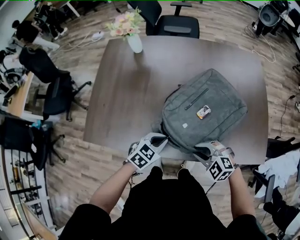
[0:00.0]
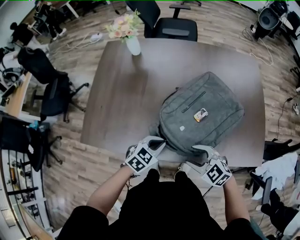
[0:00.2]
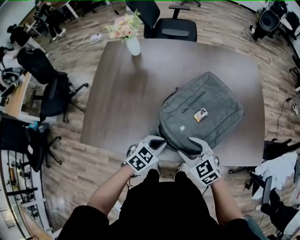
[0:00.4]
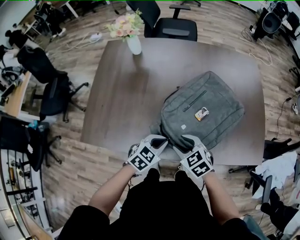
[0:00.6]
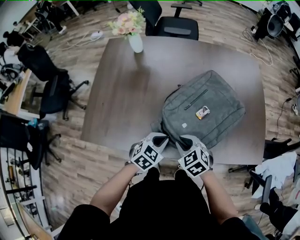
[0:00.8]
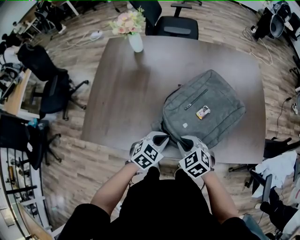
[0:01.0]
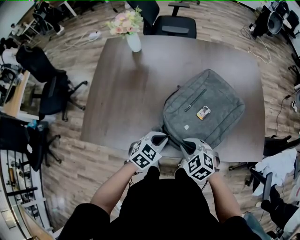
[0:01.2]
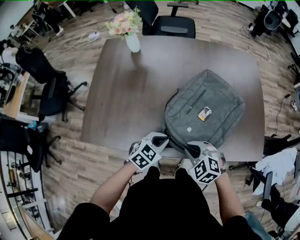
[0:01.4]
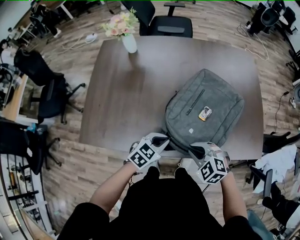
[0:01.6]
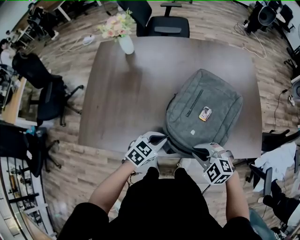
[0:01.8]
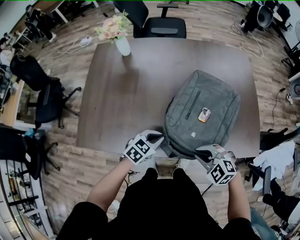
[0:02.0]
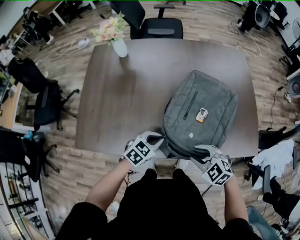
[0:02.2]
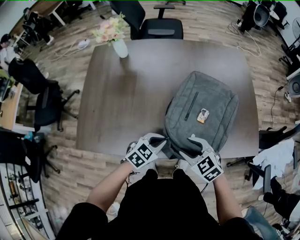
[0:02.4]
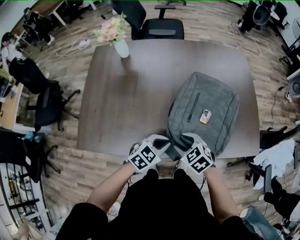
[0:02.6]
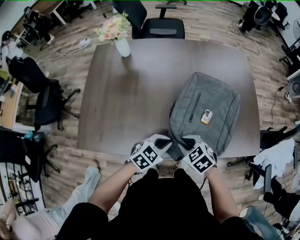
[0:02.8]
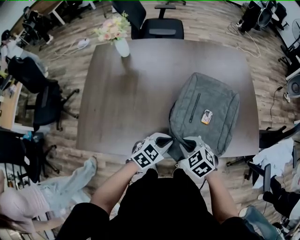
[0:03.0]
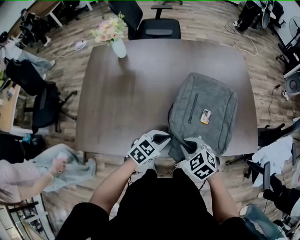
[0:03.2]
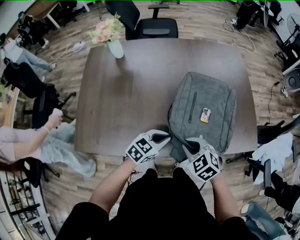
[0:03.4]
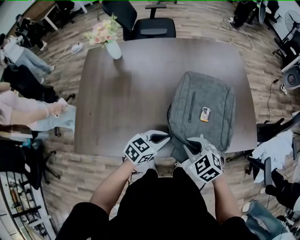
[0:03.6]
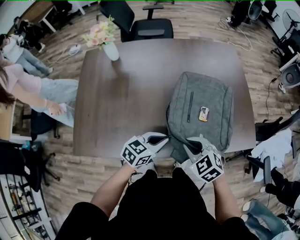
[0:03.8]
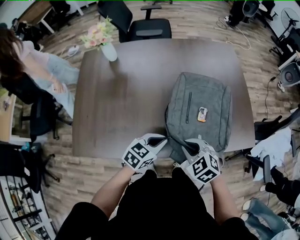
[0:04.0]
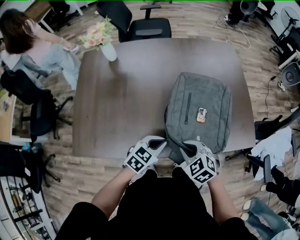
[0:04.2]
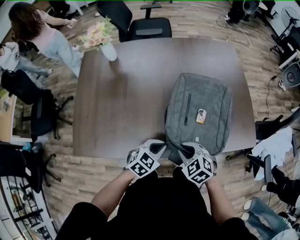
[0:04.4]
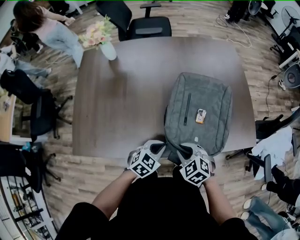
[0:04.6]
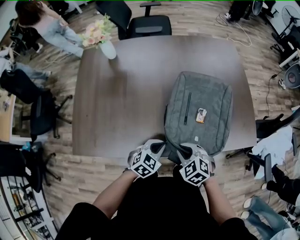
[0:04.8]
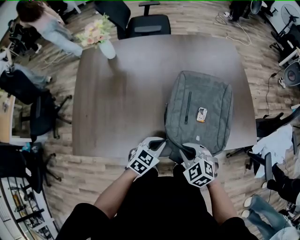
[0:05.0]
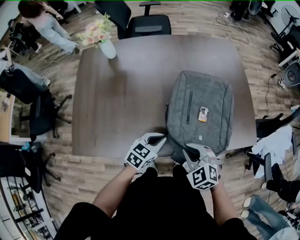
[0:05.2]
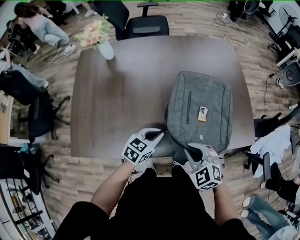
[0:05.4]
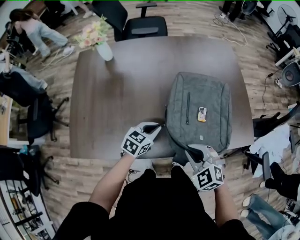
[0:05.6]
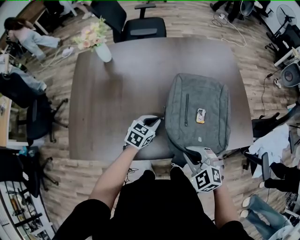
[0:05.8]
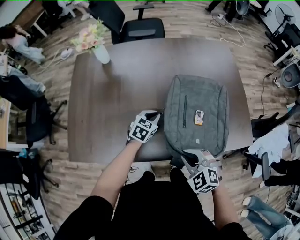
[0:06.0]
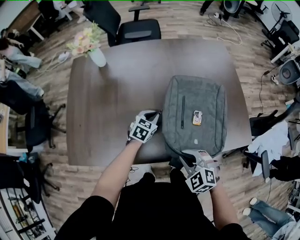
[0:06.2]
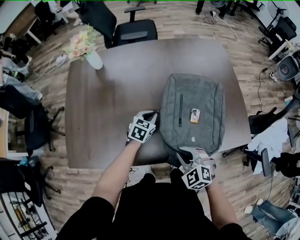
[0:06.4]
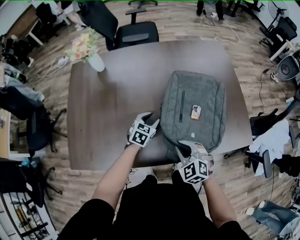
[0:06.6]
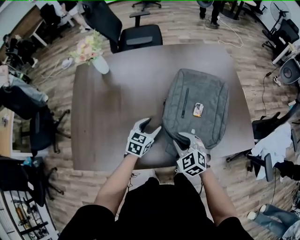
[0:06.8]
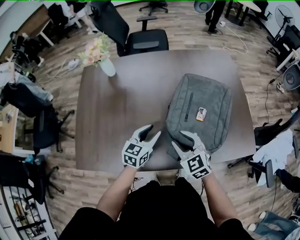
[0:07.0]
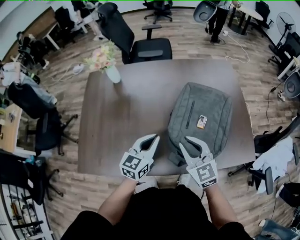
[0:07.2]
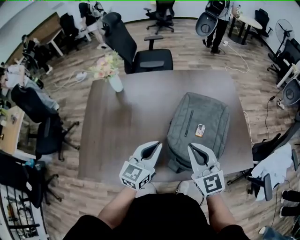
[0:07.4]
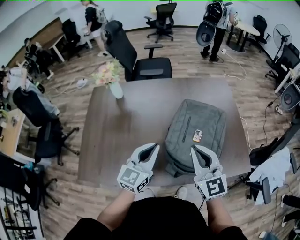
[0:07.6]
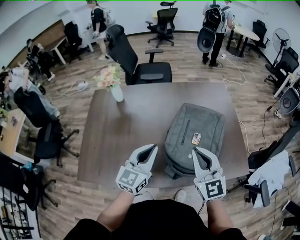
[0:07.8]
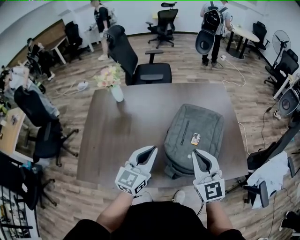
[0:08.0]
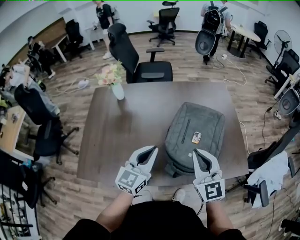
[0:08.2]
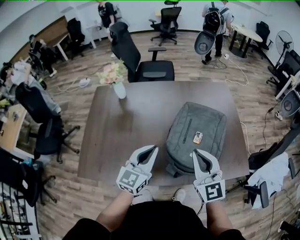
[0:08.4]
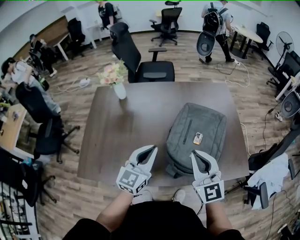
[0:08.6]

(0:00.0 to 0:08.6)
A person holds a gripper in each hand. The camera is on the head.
0:00.0 - 0:01.4: The right gripper opens, then closes once more.
0:01.4 - 0:02.8: The right gripper moves roughly 5 cm to the right and comes back, changes its angle by some 20 degrees, and opens and closes again.
0:04.4 - 0:05.8: The right gripper shifts by some 5 cm. Meanwhile the left gripper travels forward by about 15 cm.
0:05.8 - 0:07.2: The left gripper heads upward, covering roughly 15 cm, rotates some 30 degrees, and opens, then closes again. Meanwhile the right gripper goes about 15 cm forward and upward, and swivels approximately 30 degrees.
0:07.2 - 0:08.6: Both grippers move upward, approximately 10 cm. The right gripper rotates roughly 20 degrees, and closes.

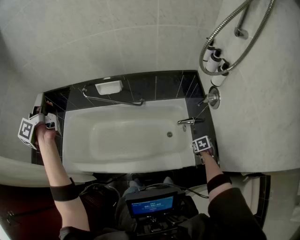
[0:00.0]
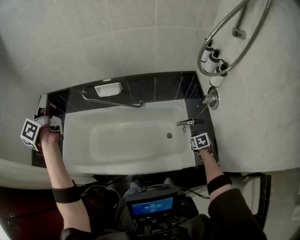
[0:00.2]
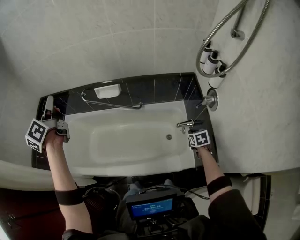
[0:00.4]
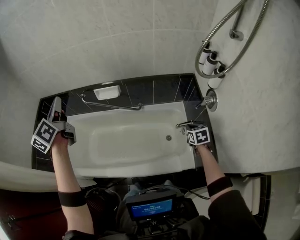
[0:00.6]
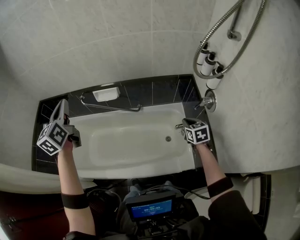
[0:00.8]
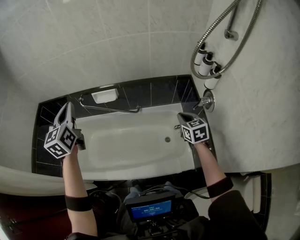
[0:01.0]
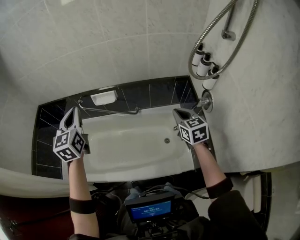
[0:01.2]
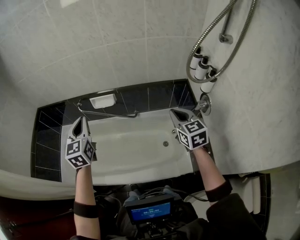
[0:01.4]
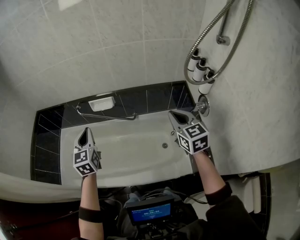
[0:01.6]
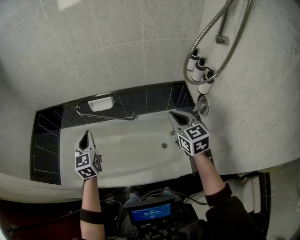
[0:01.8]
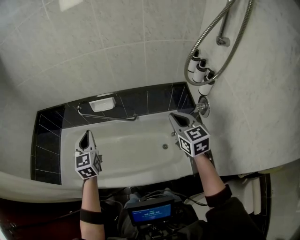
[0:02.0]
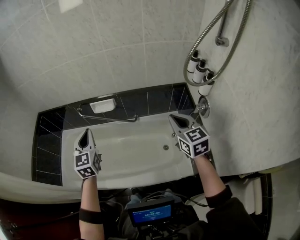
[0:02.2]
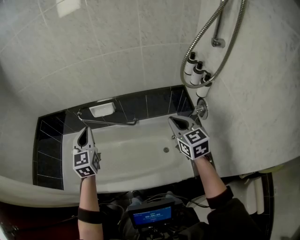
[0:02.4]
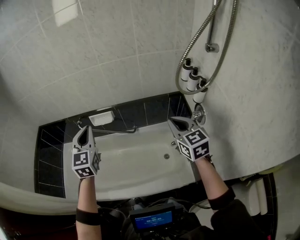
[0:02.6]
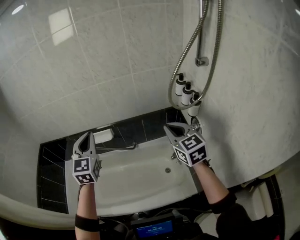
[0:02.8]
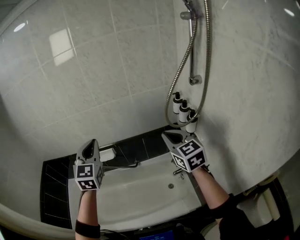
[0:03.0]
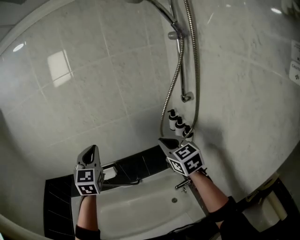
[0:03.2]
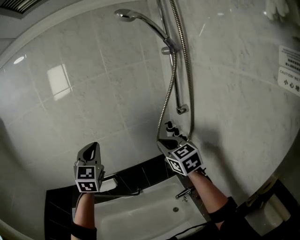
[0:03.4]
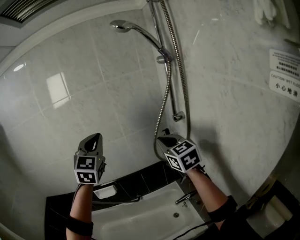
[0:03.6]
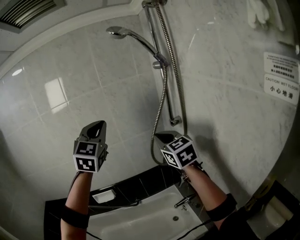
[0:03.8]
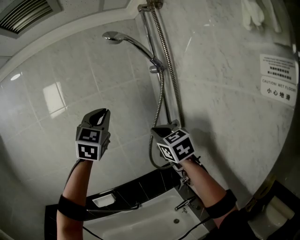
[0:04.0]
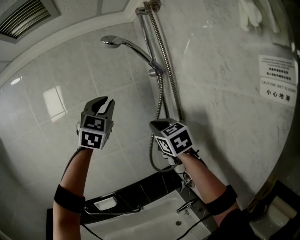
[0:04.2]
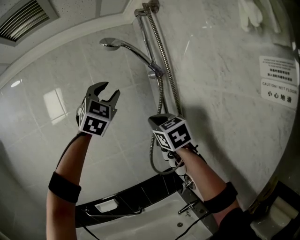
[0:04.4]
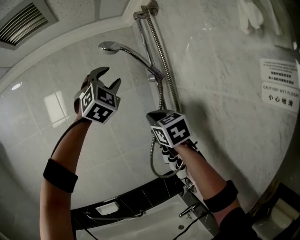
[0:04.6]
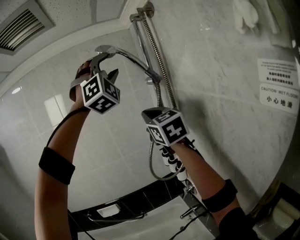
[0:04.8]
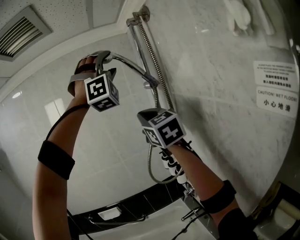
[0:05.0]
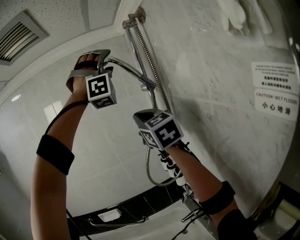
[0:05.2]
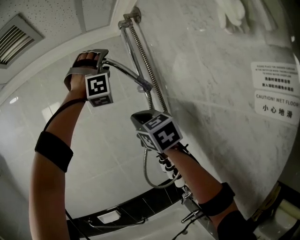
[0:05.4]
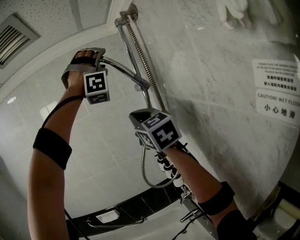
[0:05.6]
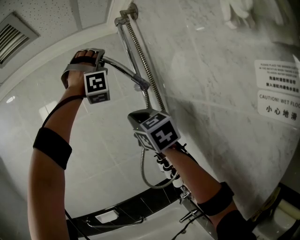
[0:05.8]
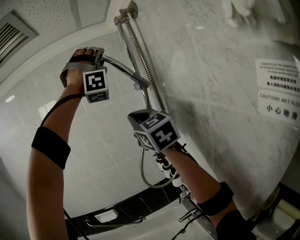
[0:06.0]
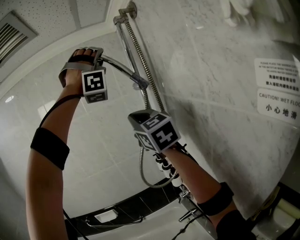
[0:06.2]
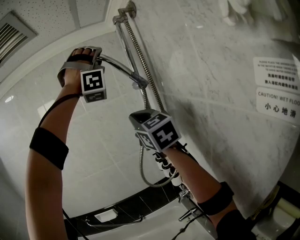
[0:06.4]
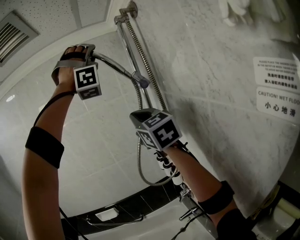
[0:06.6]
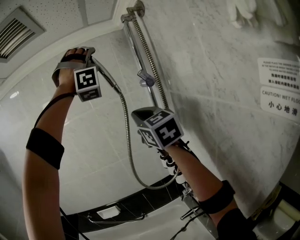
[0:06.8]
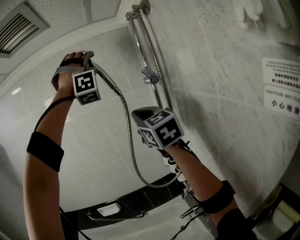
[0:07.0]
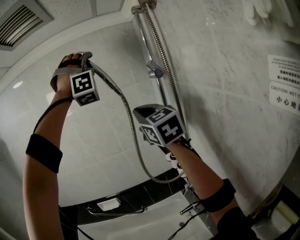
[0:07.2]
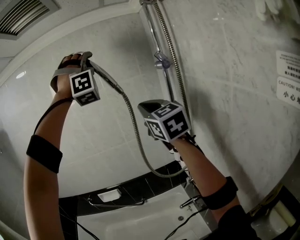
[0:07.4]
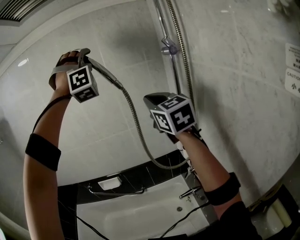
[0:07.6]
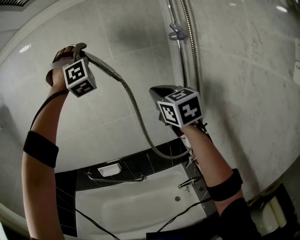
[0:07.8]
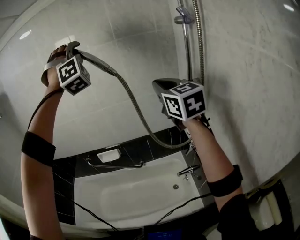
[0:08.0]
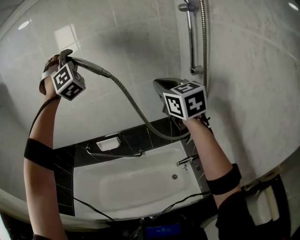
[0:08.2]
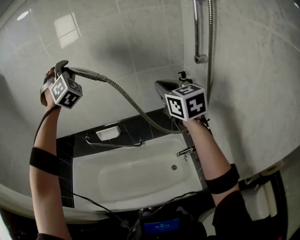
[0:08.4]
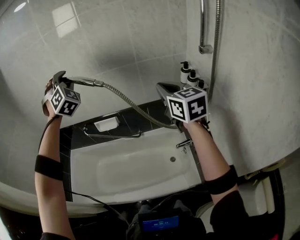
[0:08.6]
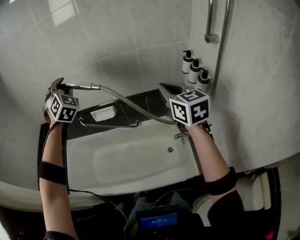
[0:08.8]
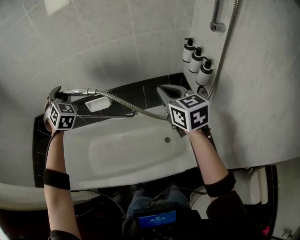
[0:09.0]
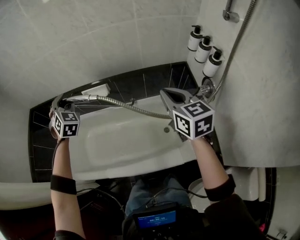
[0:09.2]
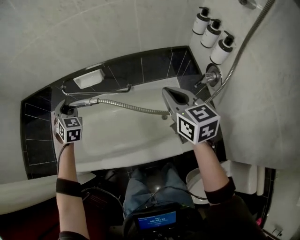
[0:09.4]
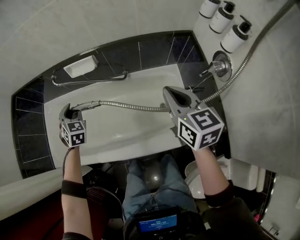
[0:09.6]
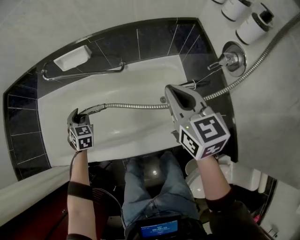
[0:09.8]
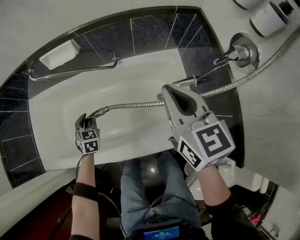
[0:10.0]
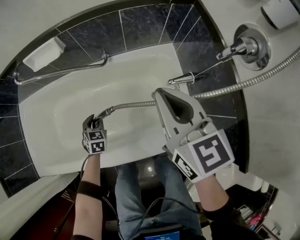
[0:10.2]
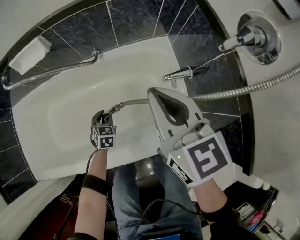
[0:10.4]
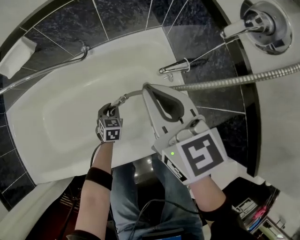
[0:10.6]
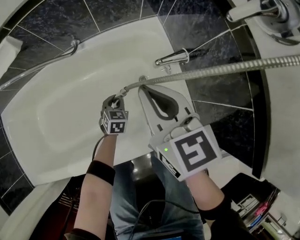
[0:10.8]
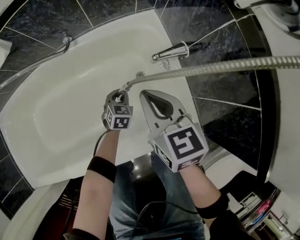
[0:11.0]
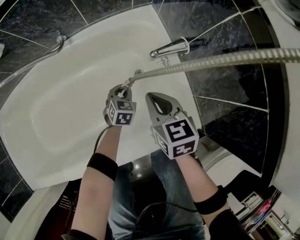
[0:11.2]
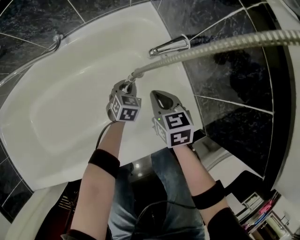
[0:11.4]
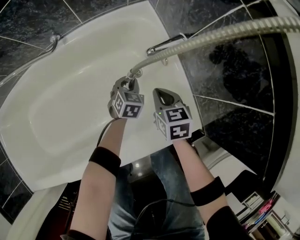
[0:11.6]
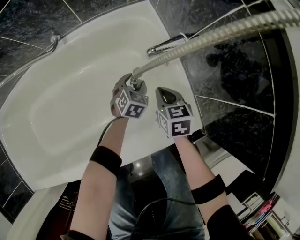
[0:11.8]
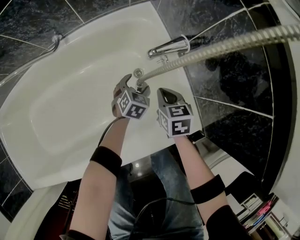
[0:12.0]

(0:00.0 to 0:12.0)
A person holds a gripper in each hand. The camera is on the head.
0:00.0 - 0:01.6: The right gripper shifts approximately 35 cm upward, and tips its fingers upward by some 50 degrees, while the left gripper moves some 25 cm, and twists approximately 60 degrees clockwise, seen from behind.
0:01.6 - 0:03.0: The left gripper travels upward and to the right by roughly 20 cm, and rotates roughly 30 degrees; the right gripper heads upward, covering approximately 15 cm.
0:03.0 - 0:04.4: The right gripper shifts roughly 25 cm upward. The left gripper heads upward and to the right, covering roughly 50 cm, swivels about 50 degrees, and opens its fingers.
0:04.4 - 0:06.0: The left gripper shifts approximately 20 cm upward, to the right and forward, and rolls clockwise, seen from behind, by some 70 degrees; the right gripper travels upward by roughly 10 cm.
0:06.0 - 0:07.6: The left gripper travels to the left and downward by roughly 25 cm, and changes its angle by roughly 20 degrees; the right gripper heads to the left and downward, covering approximately 10 cm.
0:07.6 - 0:09.0: The left gripper goes about 60 cm downward and to the left, and points its fingers roughly 40 degrees further downward. Meanwhile the right gripper goes some 35 cm downward, and changes its angle by some 30 degrees.
0:09.0 - 0:10.4: The right gripper is displaced downward by about 35 cm. Meanwhile the left gripper moves downward, roughly 80 cm, and tips its fingers downward by roughly 30 degrees.
0:10.4 - 0:12.0: The left gripper travels to the right and downward by about 30 cm, turns by roughly 30 degrees, and opens. Meanwhile the right gripper heads downward, covering approximately 40 cm, and tips its fingers downward by approximately 30 degrees.

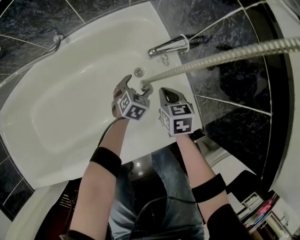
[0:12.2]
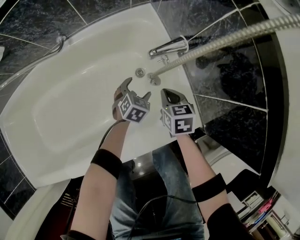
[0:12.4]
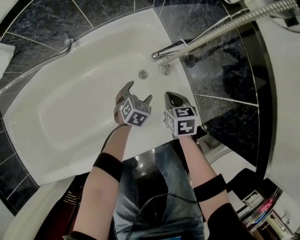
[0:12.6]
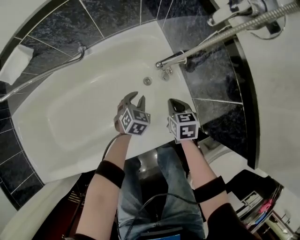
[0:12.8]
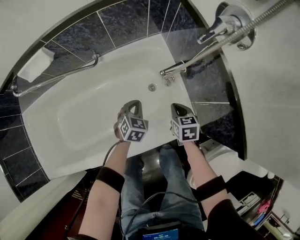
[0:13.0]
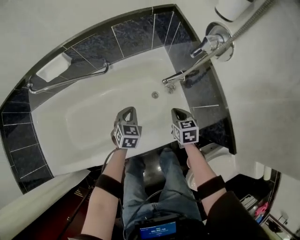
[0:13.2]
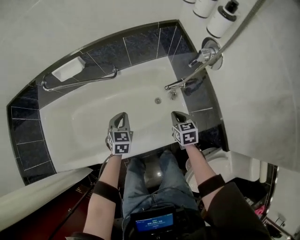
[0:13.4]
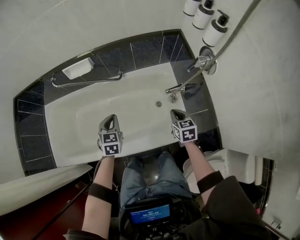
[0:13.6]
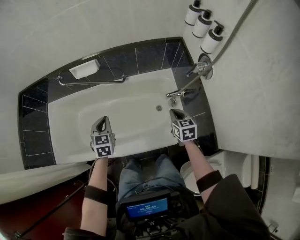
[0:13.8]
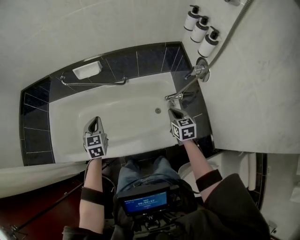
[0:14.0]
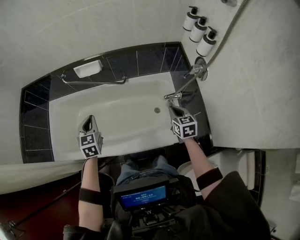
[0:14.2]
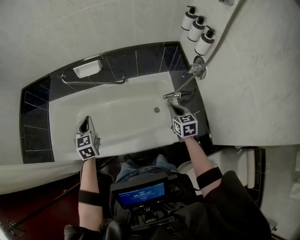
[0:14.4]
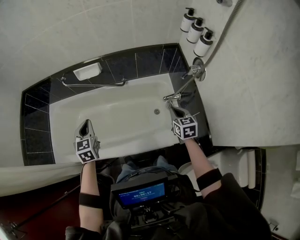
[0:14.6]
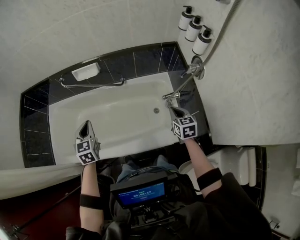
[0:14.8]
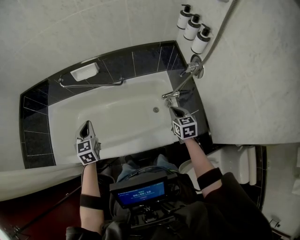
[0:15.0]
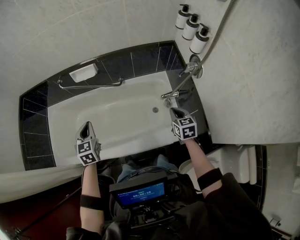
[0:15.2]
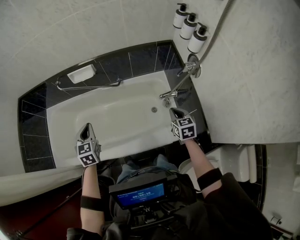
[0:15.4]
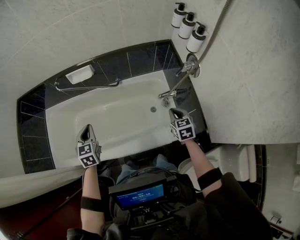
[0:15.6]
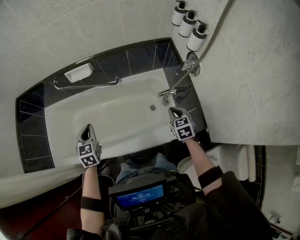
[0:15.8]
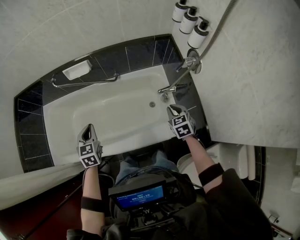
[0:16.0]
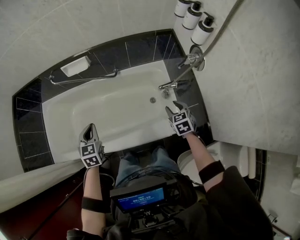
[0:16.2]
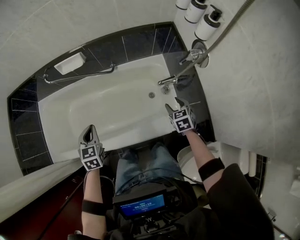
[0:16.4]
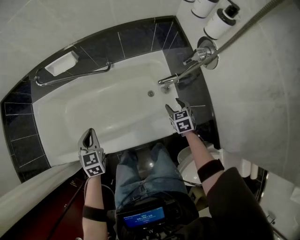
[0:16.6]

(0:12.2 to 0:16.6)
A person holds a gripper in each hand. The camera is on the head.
0:12.2 - 0:13.6: The grippers both shift upward by some 50 cm. The left gripper changes its angle by approximately 40 degrees, and closes.
0:13.6 - 0:15.2: The right gripper is displaced upward by approximately 10 cm. The left gripper moves upward and to the left, roughly 20 cm.
0:15.2 - 0:16.6: The right gripper shifts roughly 15 cm downward, and opens up. The left gripper goes about 15 cm downward and to the right.
